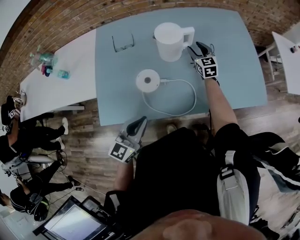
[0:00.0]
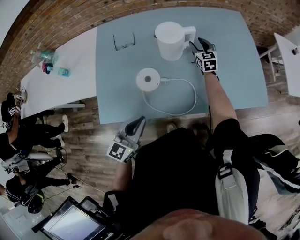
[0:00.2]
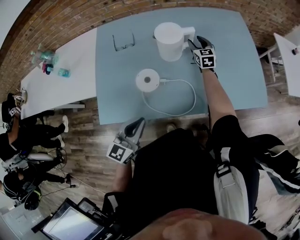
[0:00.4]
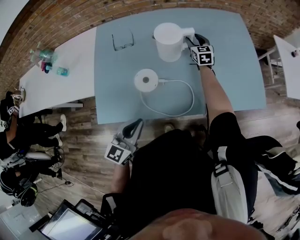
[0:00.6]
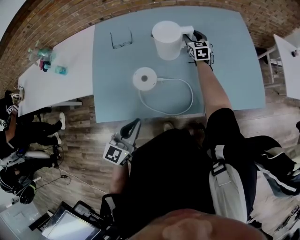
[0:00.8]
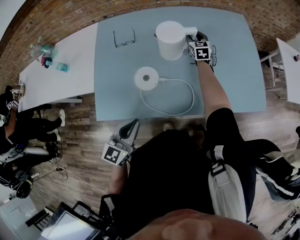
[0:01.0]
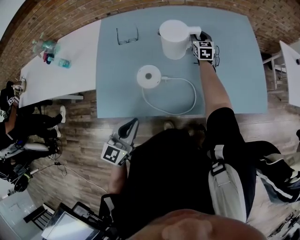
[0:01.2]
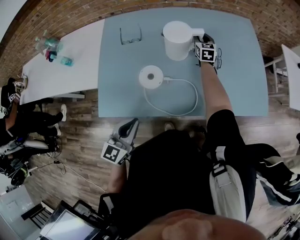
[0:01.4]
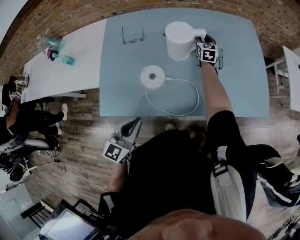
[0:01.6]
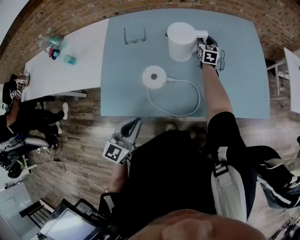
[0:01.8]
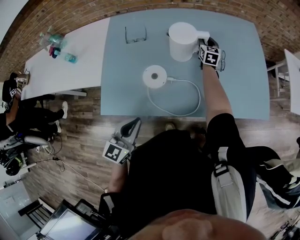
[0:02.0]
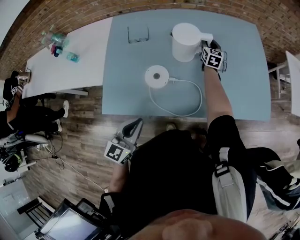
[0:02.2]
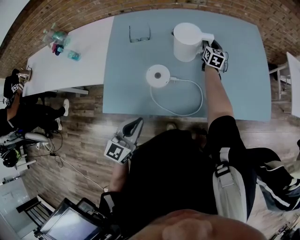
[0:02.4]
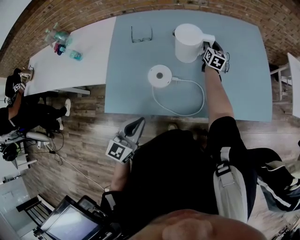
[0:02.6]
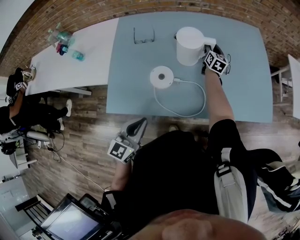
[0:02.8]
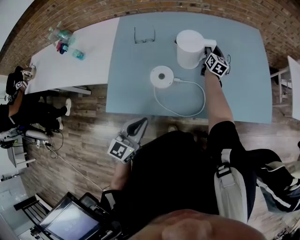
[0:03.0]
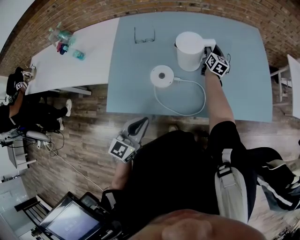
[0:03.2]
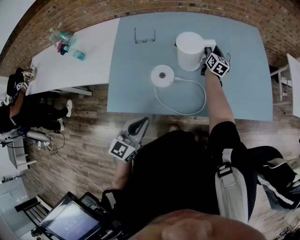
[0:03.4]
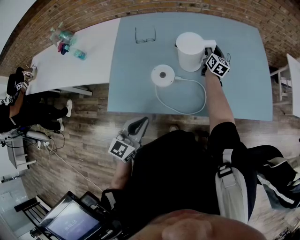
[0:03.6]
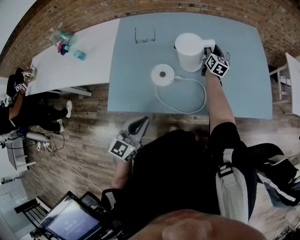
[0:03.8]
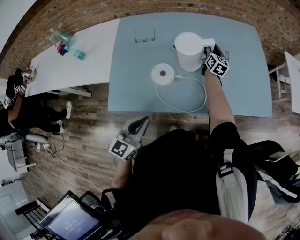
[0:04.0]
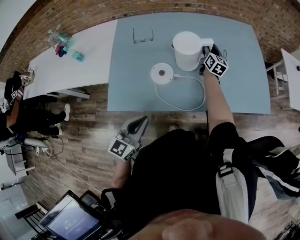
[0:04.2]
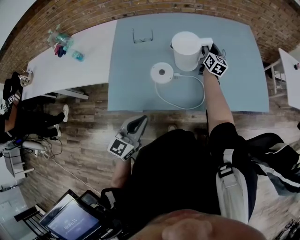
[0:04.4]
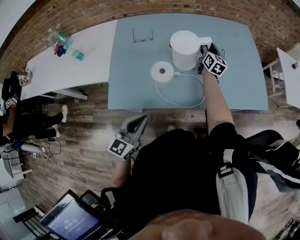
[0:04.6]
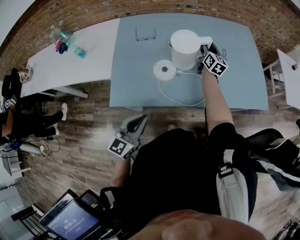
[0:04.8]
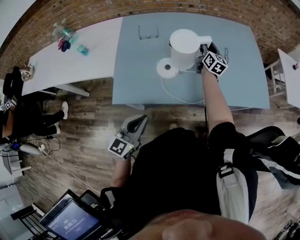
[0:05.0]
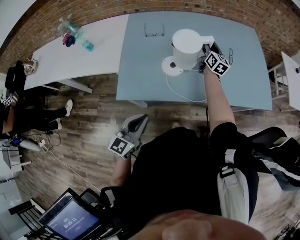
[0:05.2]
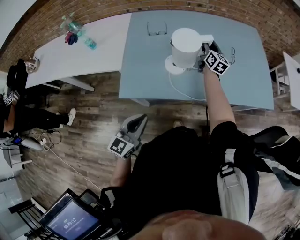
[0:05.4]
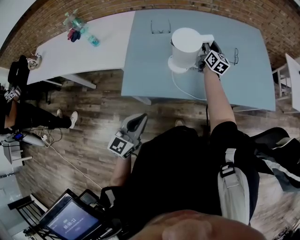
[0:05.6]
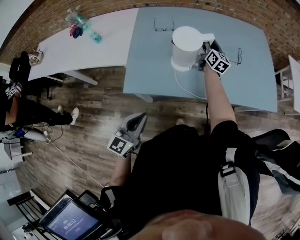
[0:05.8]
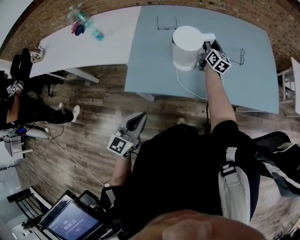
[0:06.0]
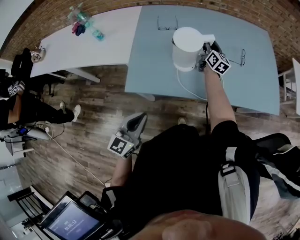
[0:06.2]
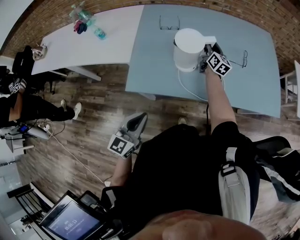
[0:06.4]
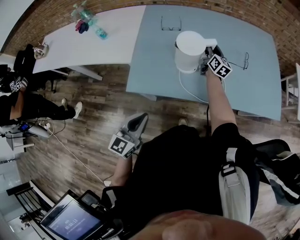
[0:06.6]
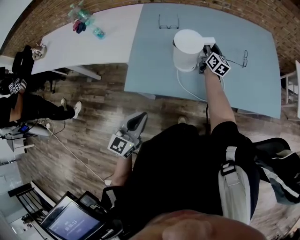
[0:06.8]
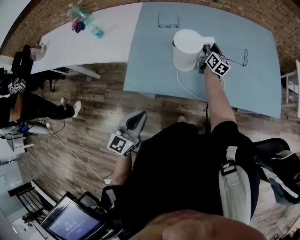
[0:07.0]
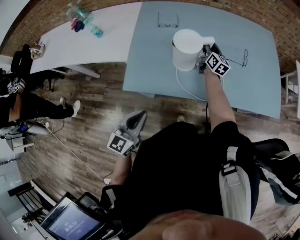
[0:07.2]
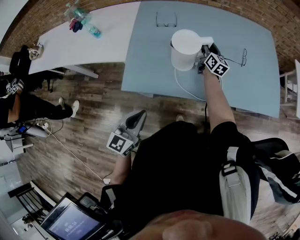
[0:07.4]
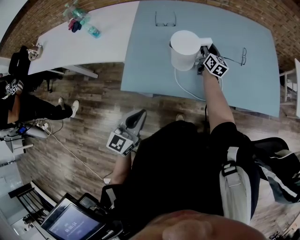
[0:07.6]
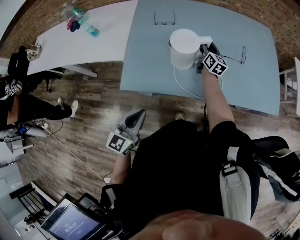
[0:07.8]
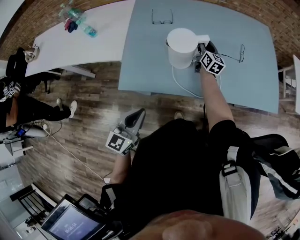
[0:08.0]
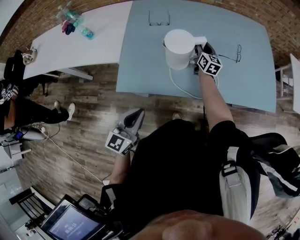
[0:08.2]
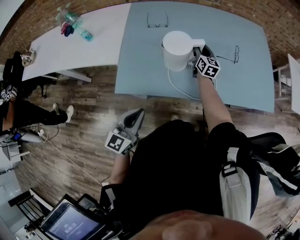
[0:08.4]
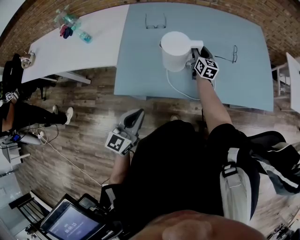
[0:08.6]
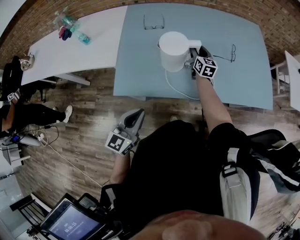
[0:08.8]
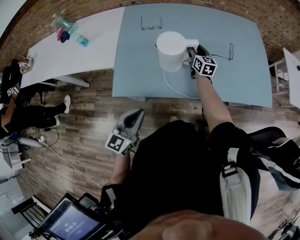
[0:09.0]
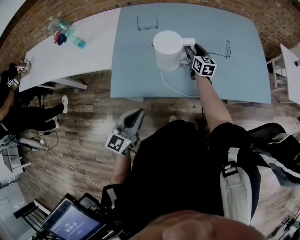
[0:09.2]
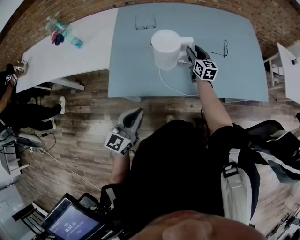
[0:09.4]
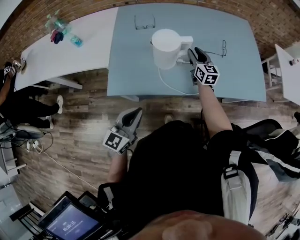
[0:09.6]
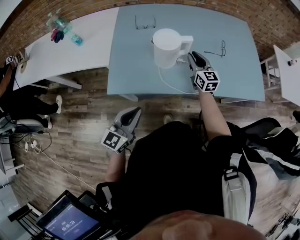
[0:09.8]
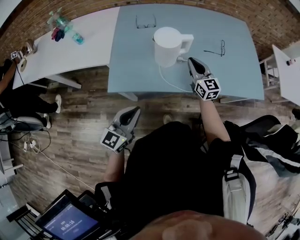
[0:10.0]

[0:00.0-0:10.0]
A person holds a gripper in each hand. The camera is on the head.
0:00.0 to 0:01.4: The right gripper moves forward, some 10 cm.
0:01.4 to 0:02.8: The right gripper changes its angle by approximately 20 degrees.
0:02.8 to 0:04.2: The right gripper heads backward, covering roughly 5 cm.
0:04.2 to 0:05.8: The left gripper moves backward and to the left, approximately 15 cm; the right gripper shifts some 15 cm to the left and backward.
0:05.8 to 0:07.2: The right gripper goes some 5 cm downward.
0:07.2 to 0:08.6: There are only small adjustments of the grippers.
0:08.6 to 0:10.0: The right gripper shifts approximately 15 cm backward and upward, turns by approximately 20 degrees, and closes.

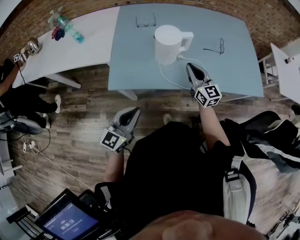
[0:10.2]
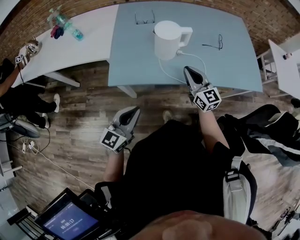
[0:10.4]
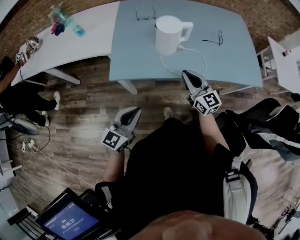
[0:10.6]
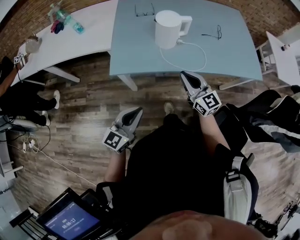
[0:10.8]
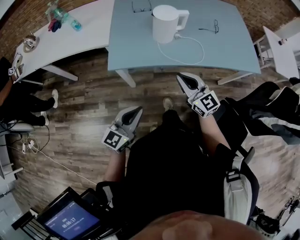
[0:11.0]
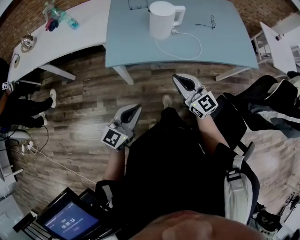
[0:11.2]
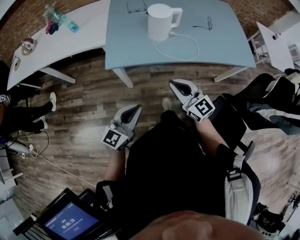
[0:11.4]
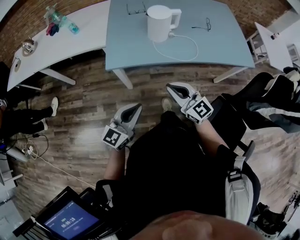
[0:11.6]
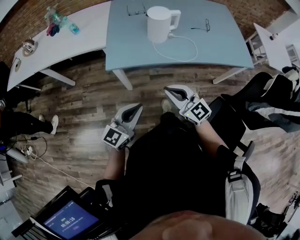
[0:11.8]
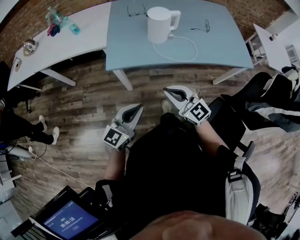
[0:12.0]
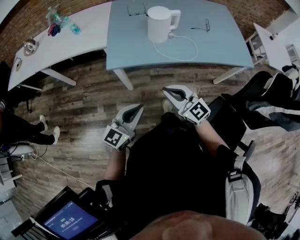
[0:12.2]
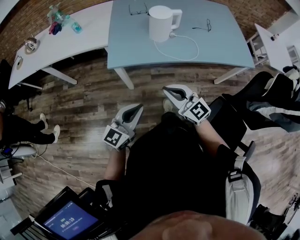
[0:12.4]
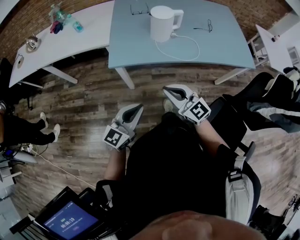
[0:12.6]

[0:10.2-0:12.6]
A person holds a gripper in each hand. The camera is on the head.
0:10.2 to 0:11.4: The right gripper shifts roughly 25 cm backward, while the left gripper moves backward, some 15 cm.
0:11.4 to 0:12.6: The grippers make only small movements.

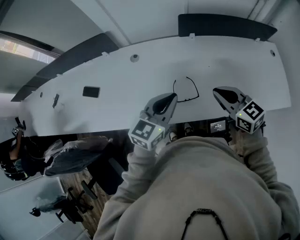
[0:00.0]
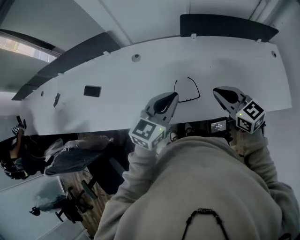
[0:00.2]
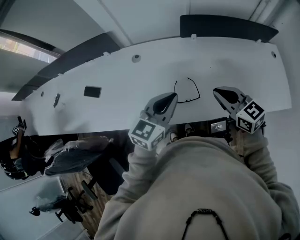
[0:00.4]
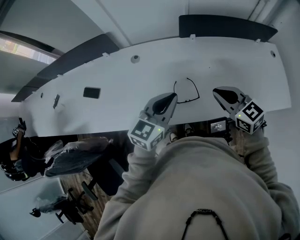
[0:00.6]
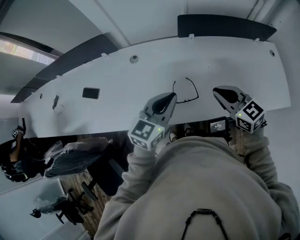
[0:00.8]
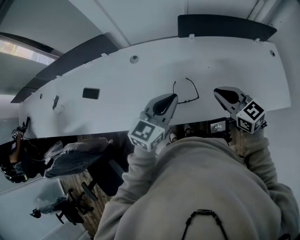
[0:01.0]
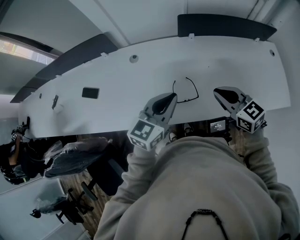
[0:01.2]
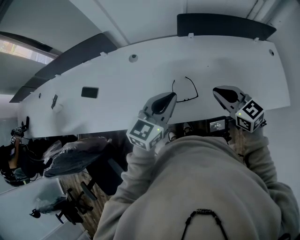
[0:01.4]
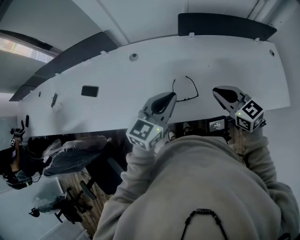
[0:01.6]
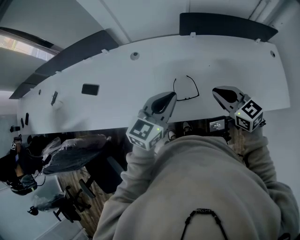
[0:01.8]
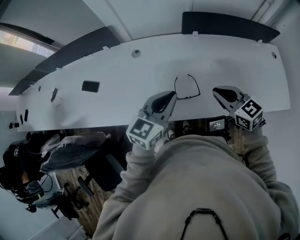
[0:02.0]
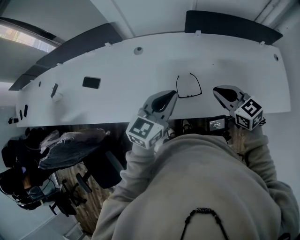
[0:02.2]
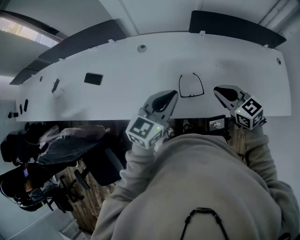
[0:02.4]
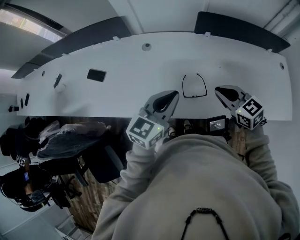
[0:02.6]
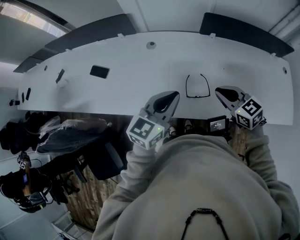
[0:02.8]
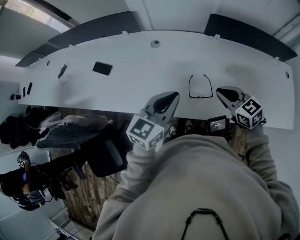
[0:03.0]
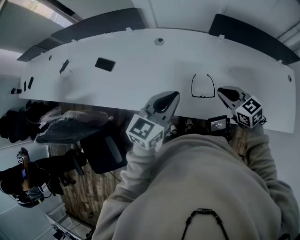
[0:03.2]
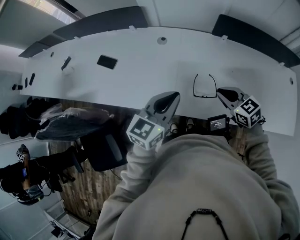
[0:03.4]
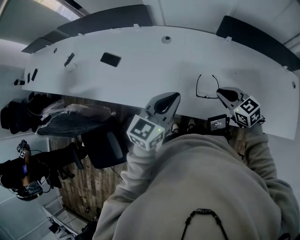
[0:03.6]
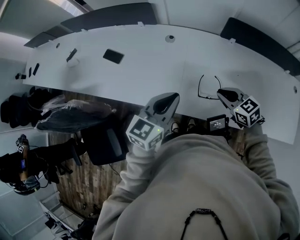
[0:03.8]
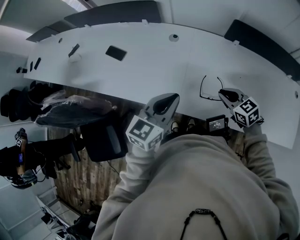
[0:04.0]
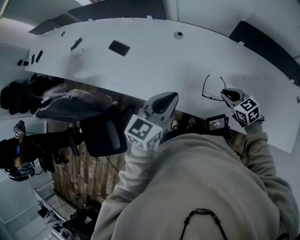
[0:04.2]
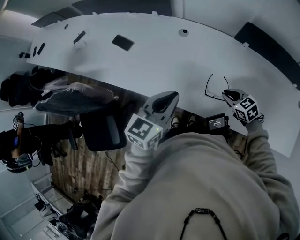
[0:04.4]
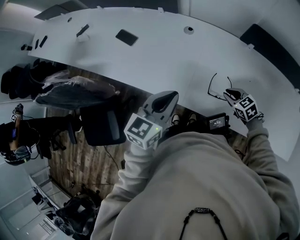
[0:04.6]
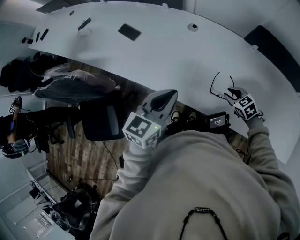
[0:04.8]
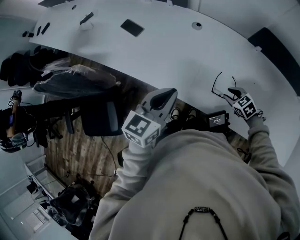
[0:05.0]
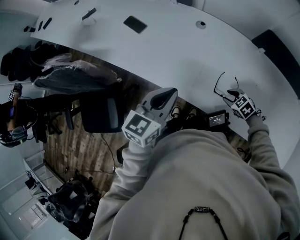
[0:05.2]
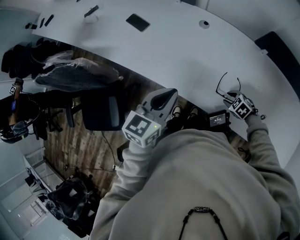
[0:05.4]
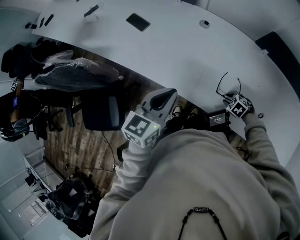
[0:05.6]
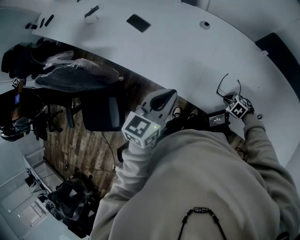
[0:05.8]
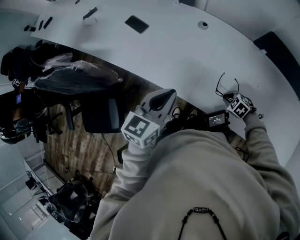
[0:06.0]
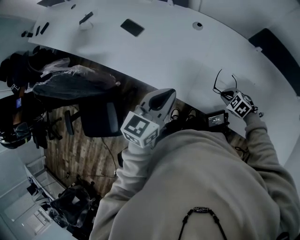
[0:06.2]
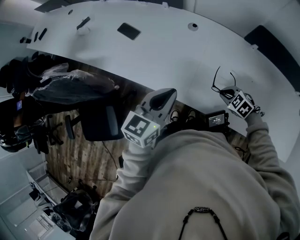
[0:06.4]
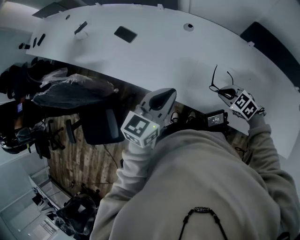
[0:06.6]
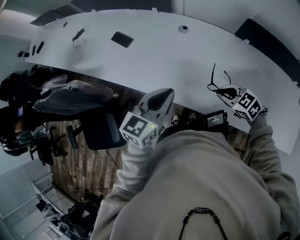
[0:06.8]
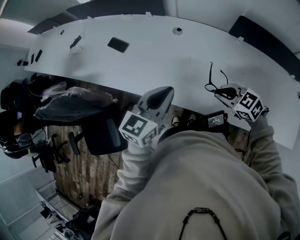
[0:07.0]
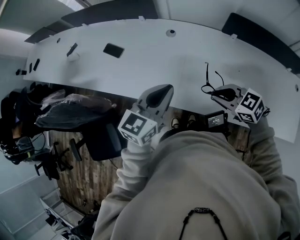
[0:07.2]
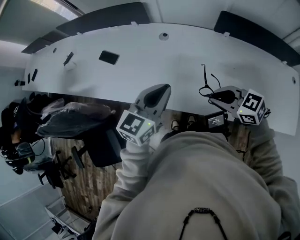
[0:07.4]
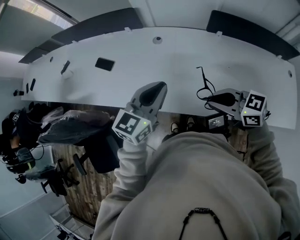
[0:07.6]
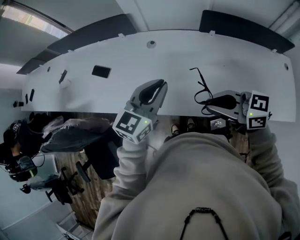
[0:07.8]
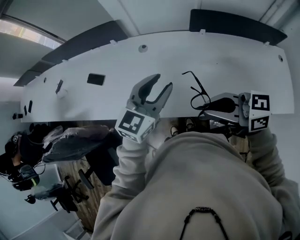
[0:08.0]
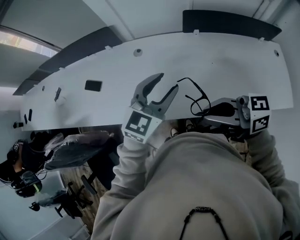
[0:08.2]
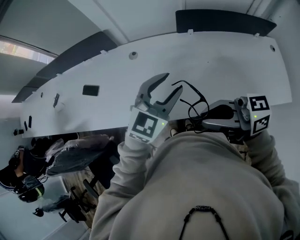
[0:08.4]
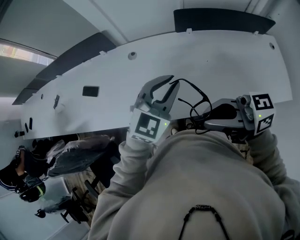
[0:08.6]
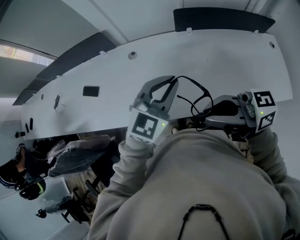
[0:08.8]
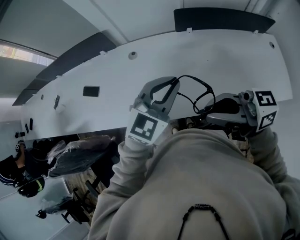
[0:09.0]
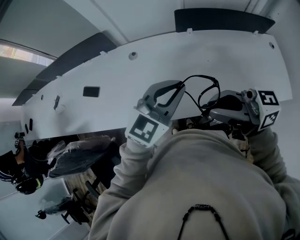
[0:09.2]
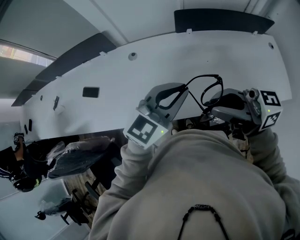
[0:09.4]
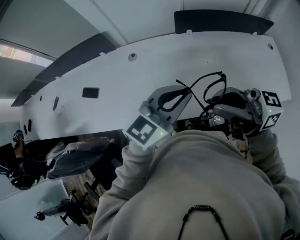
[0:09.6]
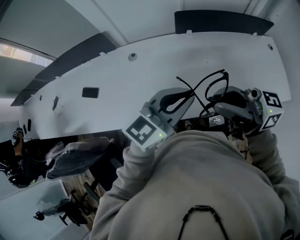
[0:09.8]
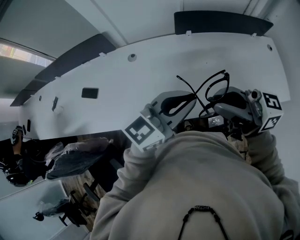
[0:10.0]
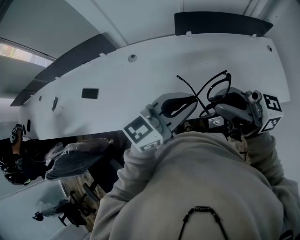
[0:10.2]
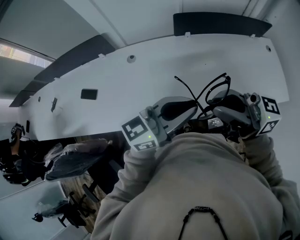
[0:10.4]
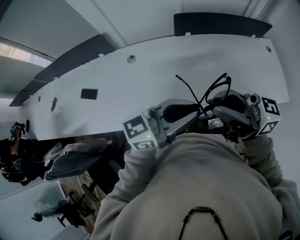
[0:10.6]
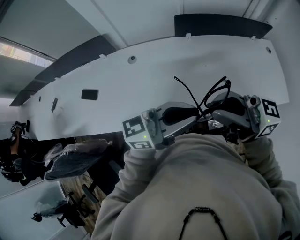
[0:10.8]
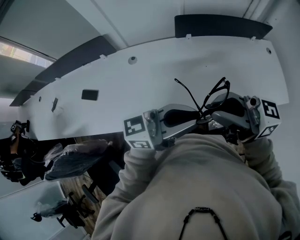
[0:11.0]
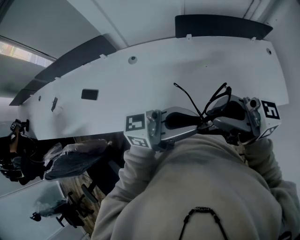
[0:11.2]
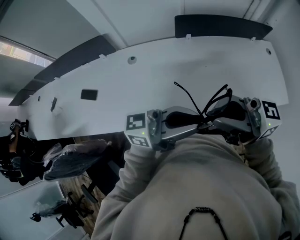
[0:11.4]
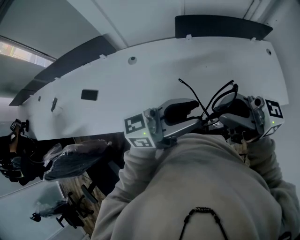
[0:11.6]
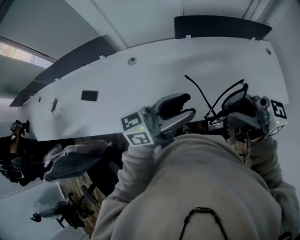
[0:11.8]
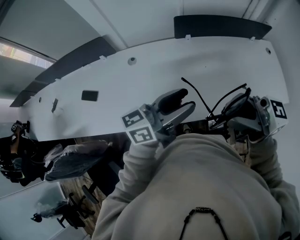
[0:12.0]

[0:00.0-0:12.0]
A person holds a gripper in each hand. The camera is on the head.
0:00.0 to 0:01.6: Neither gripper changes place.
0:01.6 to 0:03.0: The two grippers go about 5 cm to the left.
0:03.0 to 0:04.4: The left gripper heads to the left, covering some 5 cm, while the right gripper moves downward, approximately 10 cm.
0:04.4 to 0:06.0: The left gripper shifts by some 5 cm. Meanwhile the right gripper travels downward by some 10 cm, turns by some 40 degrees, and opens and closes again.
0:06.0 to 0:07.6: The left gripper shifts some 15 cm to the right and upward, and turns by about 20 degrees, while the right gripper heads upward, covering roughly 30 cm, and points its fingers about 50 degrees further upward.
0:07.6 to 0:09.0: The left gripper shifts by approximately 15 cm, swivels roughly 30 degrees, and opens and closes again. Meanwhile the right gripper shifts roughly 15 cm upward, and tilts its fingers about 30 degrees upward.
0:09.0 to 0:10.4: The left gripper moves some 10 cm, and rotates about 50 degrees.
0:10.4 to 0:12.0: The left gripper opens.
